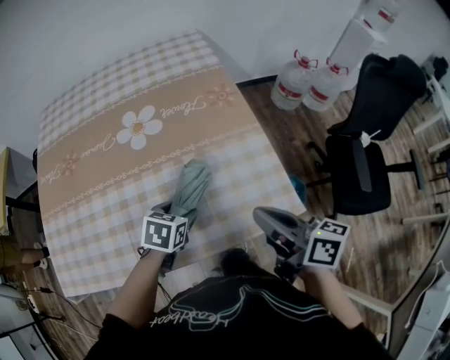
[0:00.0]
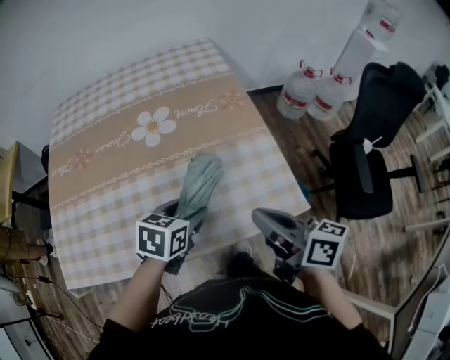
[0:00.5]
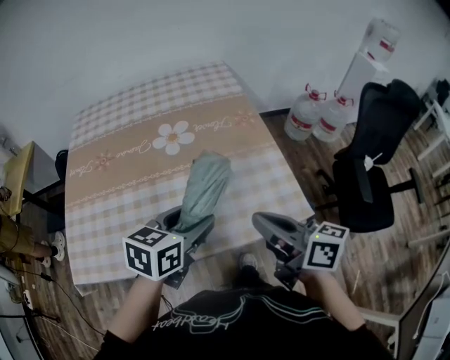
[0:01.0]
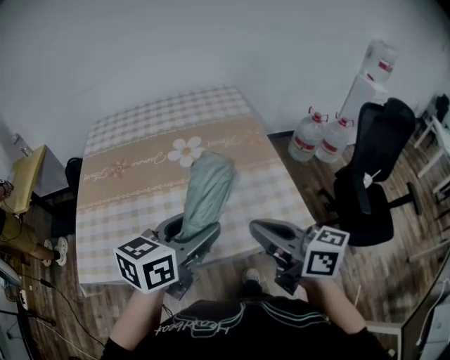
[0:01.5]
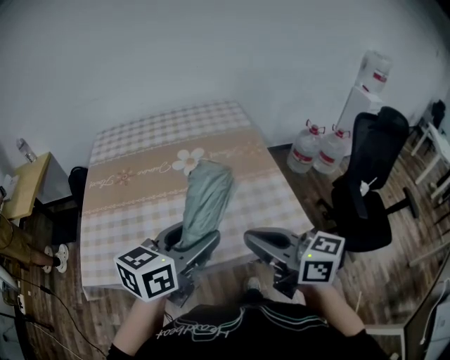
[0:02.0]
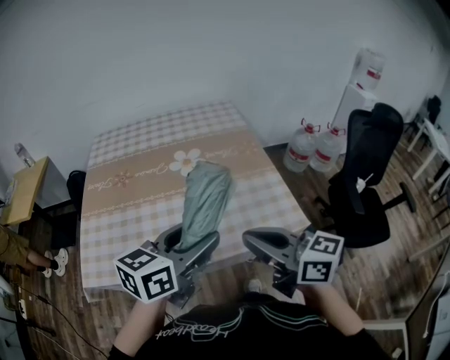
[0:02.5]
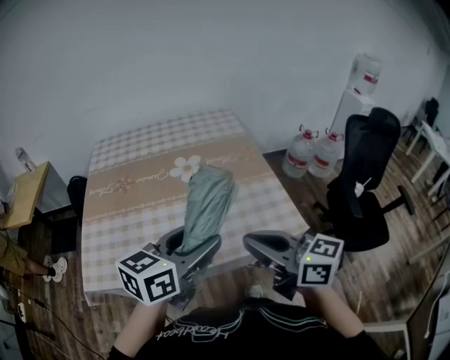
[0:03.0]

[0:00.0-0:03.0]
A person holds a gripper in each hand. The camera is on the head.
0:00.0 to 0:01.5: The right gripper shifts roughly 20 cm upward, to the left and backward, and turns by approximately 20 degrees, while the left gripper goes roughly 30 cm upward and backward, and tilts its fingers about 40 degrees upward.
0:01.5 to 0:03.0: Both grippers travel together backward, approximately 5 cm.

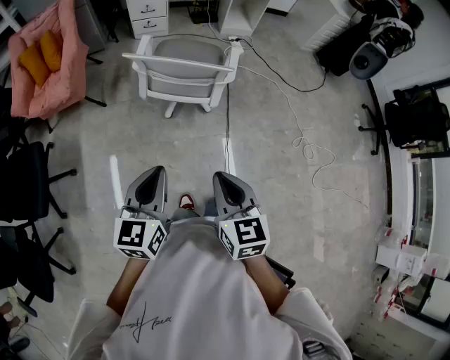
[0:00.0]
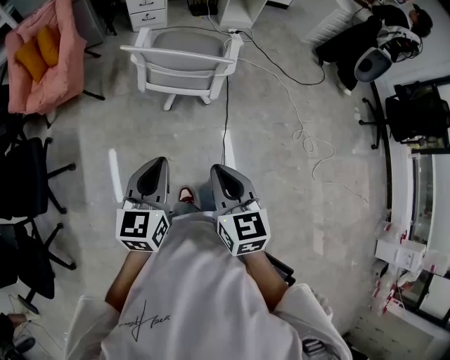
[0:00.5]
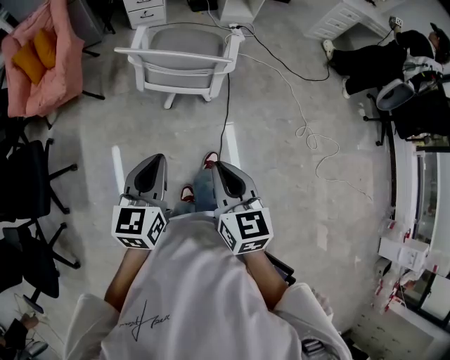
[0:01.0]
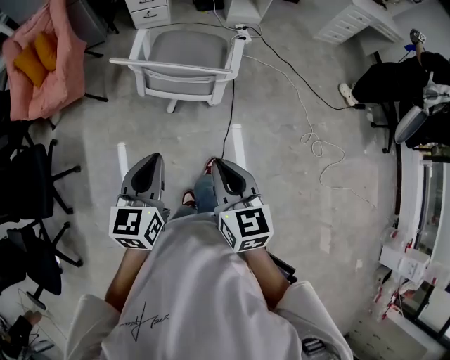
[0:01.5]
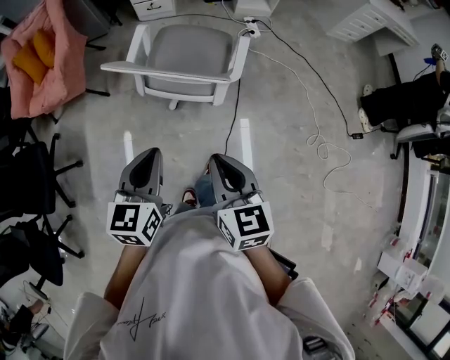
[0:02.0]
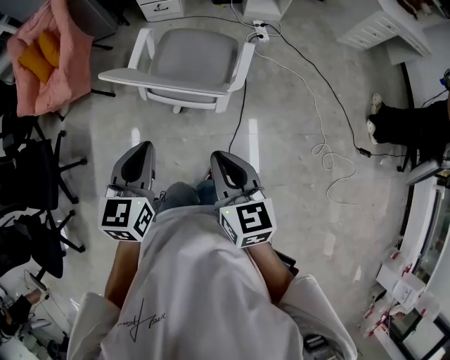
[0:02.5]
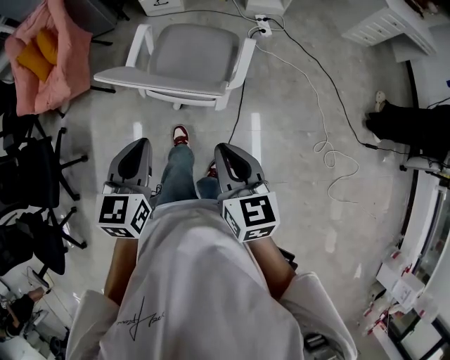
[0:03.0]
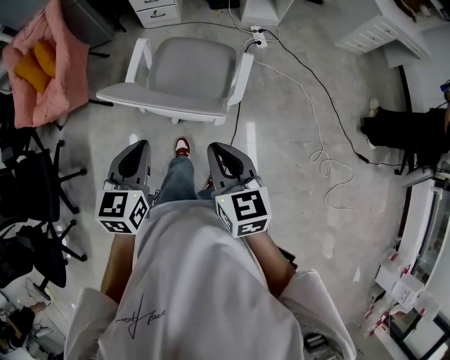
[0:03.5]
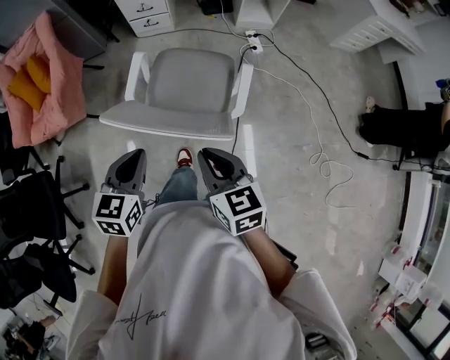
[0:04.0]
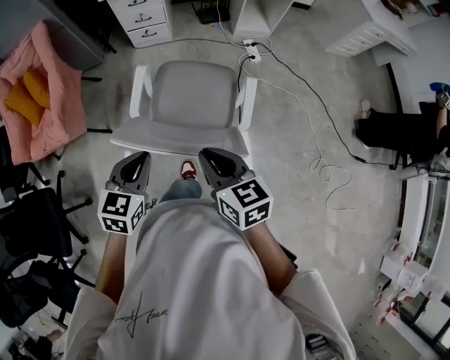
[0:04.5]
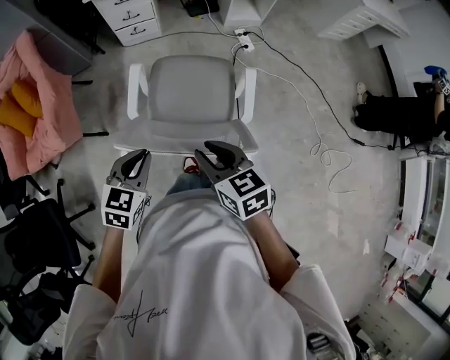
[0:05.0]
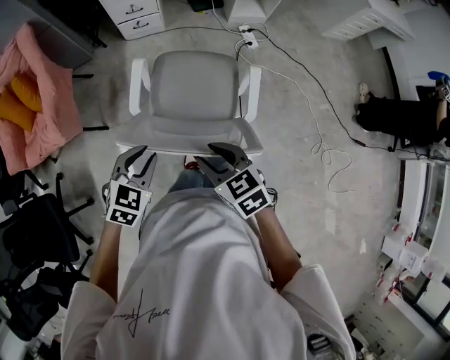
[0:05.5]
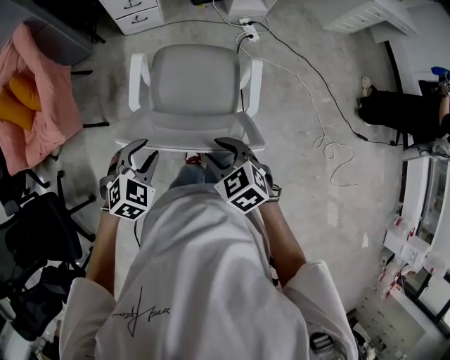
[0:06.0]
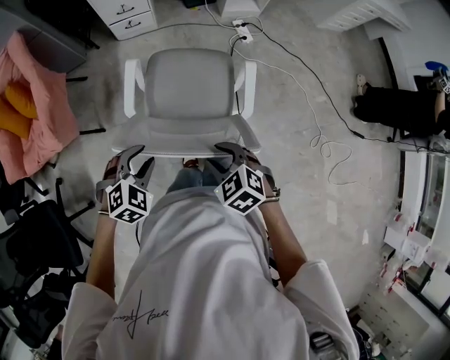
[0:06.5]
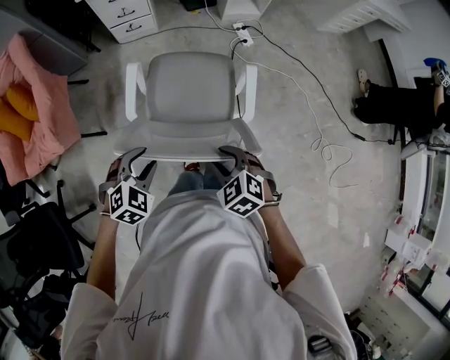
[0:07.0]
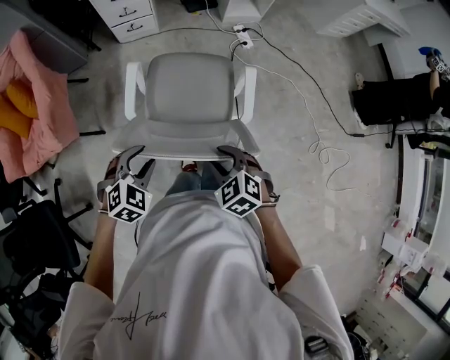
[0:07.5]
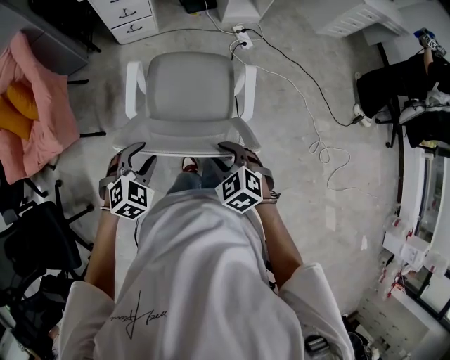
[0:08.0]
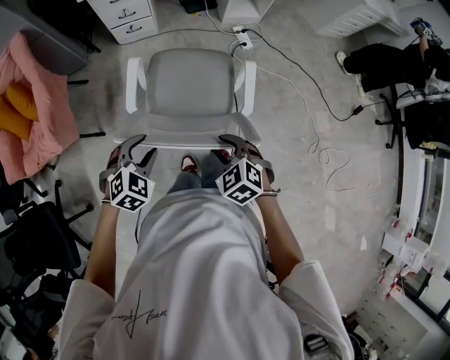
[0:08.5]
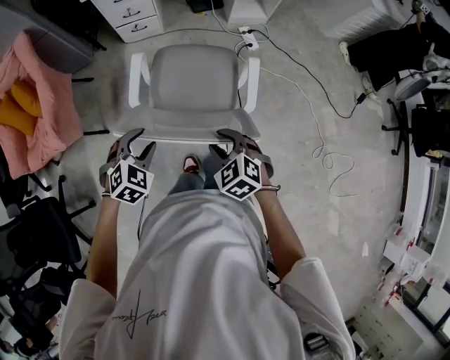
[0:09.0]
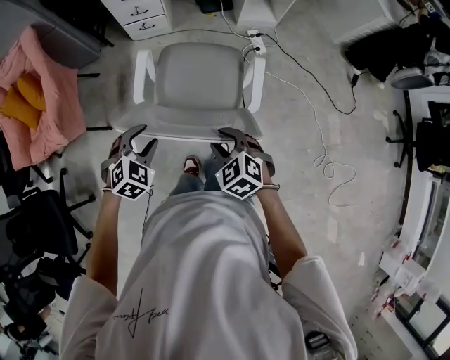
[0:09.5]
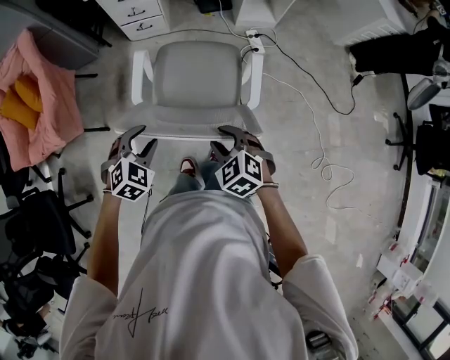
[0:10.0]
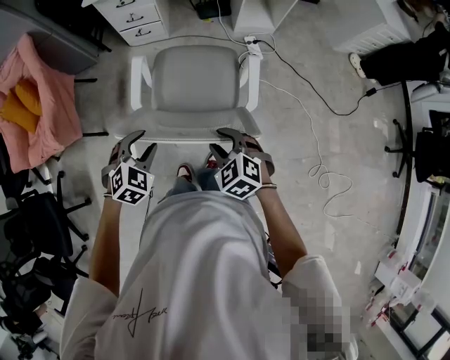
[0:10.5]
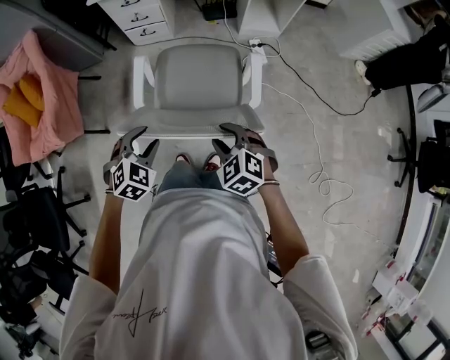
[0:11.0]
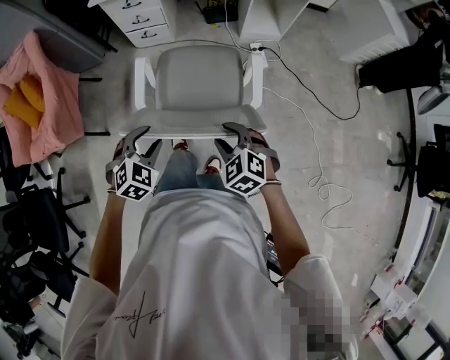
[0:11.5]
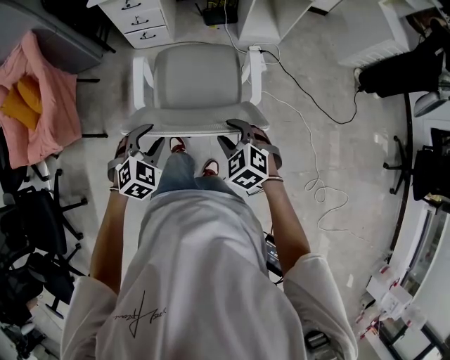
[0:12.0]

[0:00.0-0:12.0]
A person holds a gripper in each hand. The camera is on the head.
0:00.0 to 0:02.0: The grippers both shift forward by approximately 15 cm.
0:02.0 to 0:04.0: Both grippers move forward, some 20 cm.
0:04.0 to 0:06.0: The left gripper goes about 15 cm downward, forward and to the left, changes its angle by some 50 degrees, and opens up. The right gripper goes some 15 cm downward, to the left and forward, swivels roughly 30 degrees, and opens up.
0:06.0 to 0:08.0: There are only small adjustments of the grippers.
0:08.0 to 0:10.0: The two grippers go roughly 10 cm forward and to the right.
0:10.0 to 0:12.0: The right gripper shifts roughly 10 cm forward and to the right. The left gripper shifts some 10 cm to the right and forward.

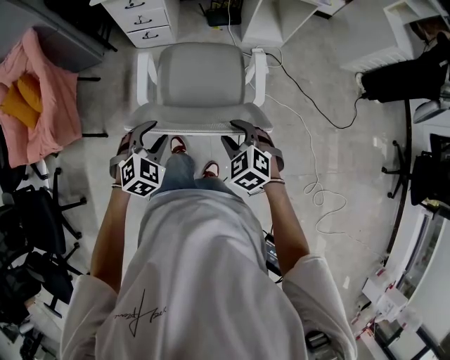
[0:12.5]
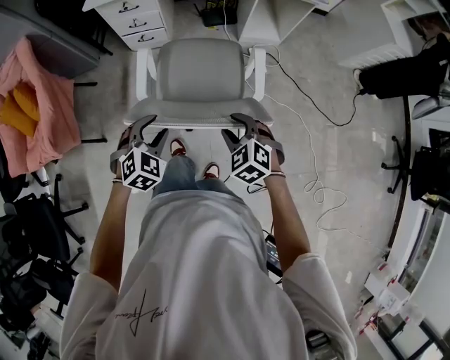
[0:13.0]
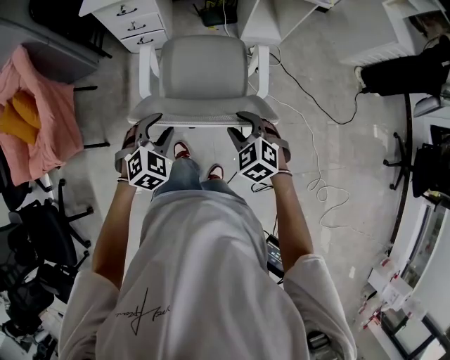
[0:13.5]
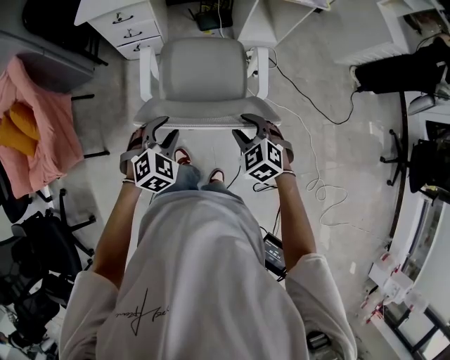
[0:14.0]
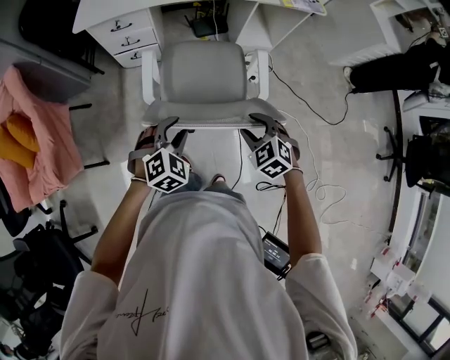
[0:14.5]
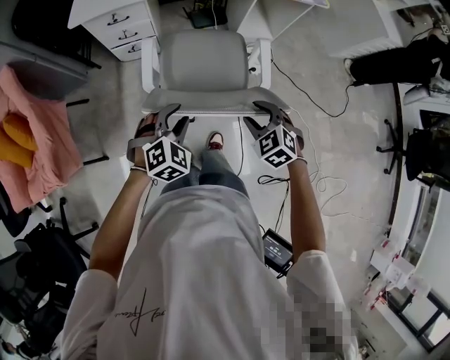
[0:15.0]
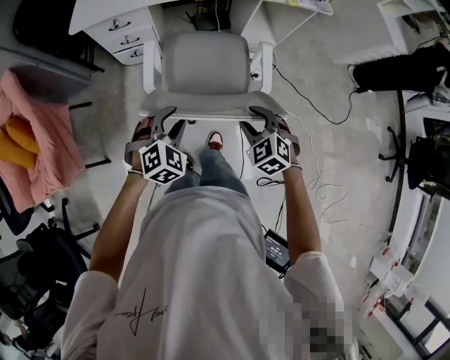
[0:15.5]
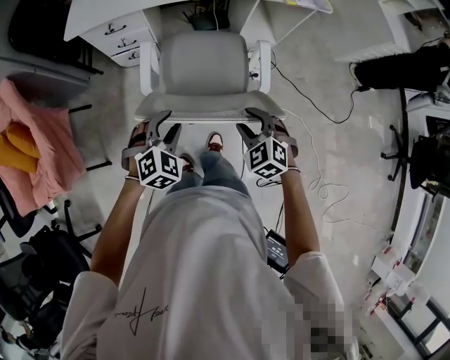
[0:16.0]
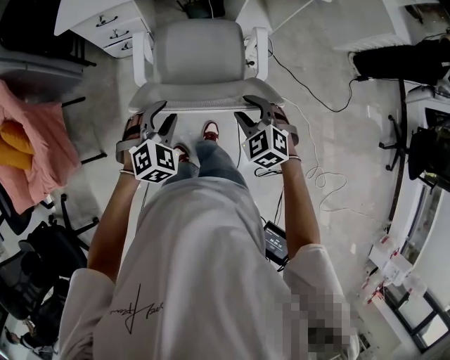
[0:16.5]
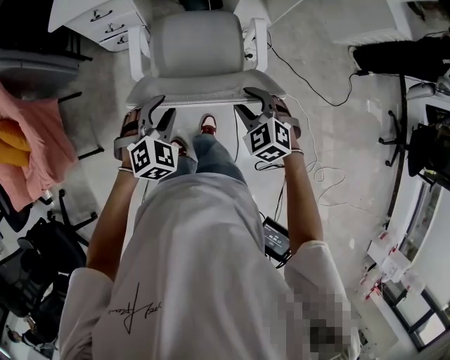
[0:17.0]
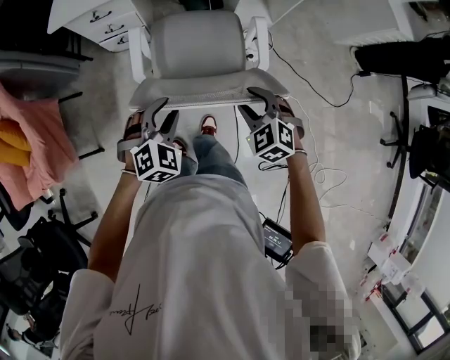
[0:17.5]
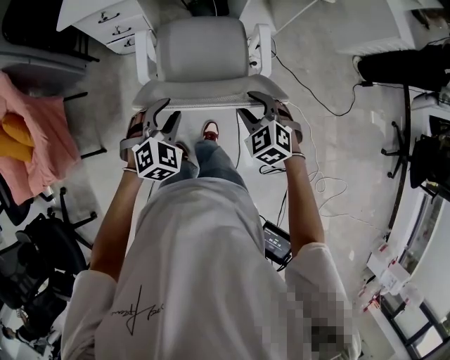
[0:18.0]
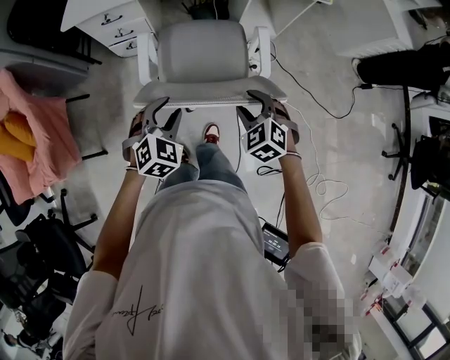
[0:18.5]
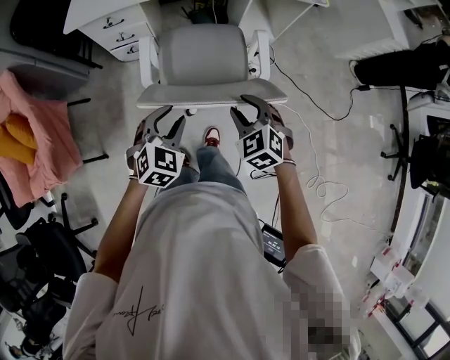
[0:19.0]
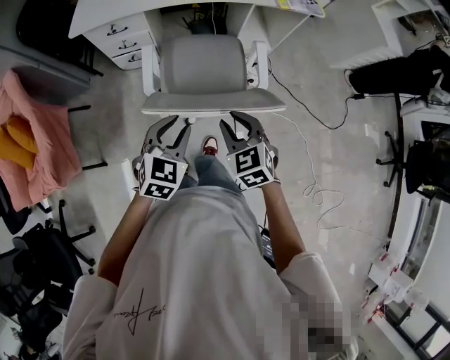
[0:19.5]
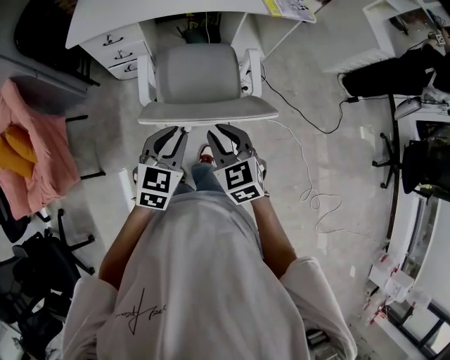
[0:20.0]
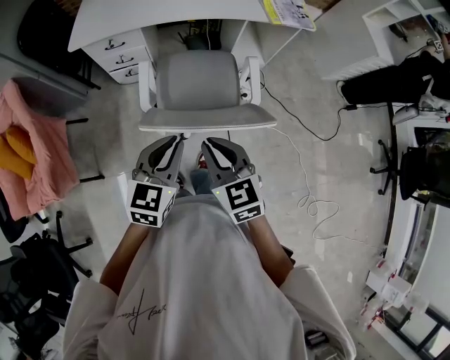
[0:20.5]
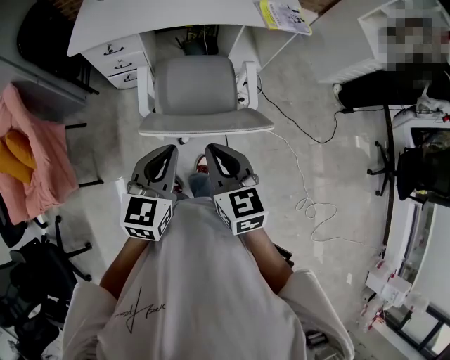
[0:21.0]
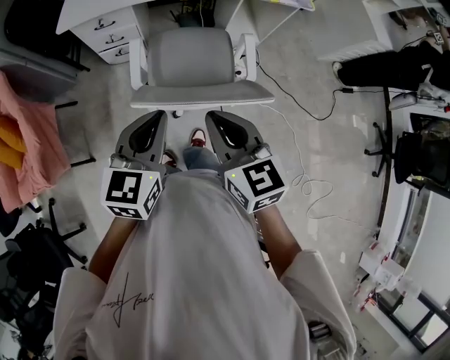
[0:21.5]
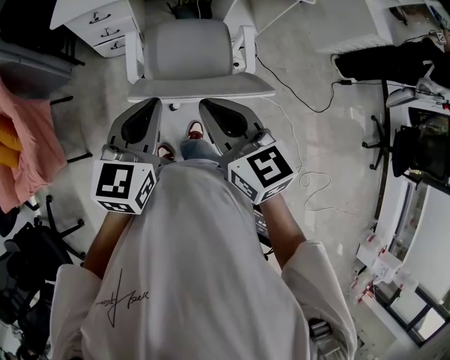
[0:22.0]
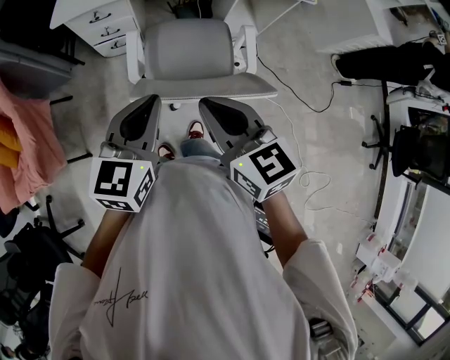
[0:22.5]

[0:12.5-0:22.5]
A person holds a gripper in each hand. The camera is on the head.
0:12.5 to 0:14.5: The two grippers go approximately 15 cm forward.
0:14.5 to 0:16.5: The grippers both shift forward by approximately 5 cm.
0:16.5 to 0:18.5: The grippers stay close to where they were, moving slightly.
0:18.5 to 0:20.5: The right gripper goes roughly 20 cm upward and to the left, rotates about 40 degrees, and closes its fingers. Meanwhile the left gripper heads upward, covering some 10 cm, changes its angle by roughly 40 degrees, and closes its fingers.
0:20.5 to 0:22.5: Both grippers move upward, about 5 cm.

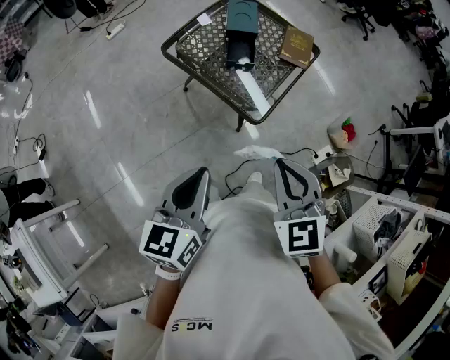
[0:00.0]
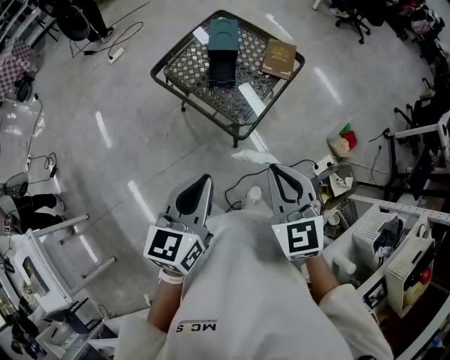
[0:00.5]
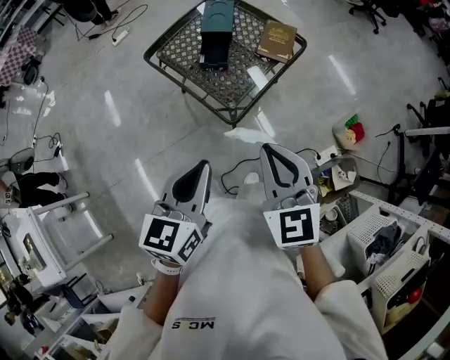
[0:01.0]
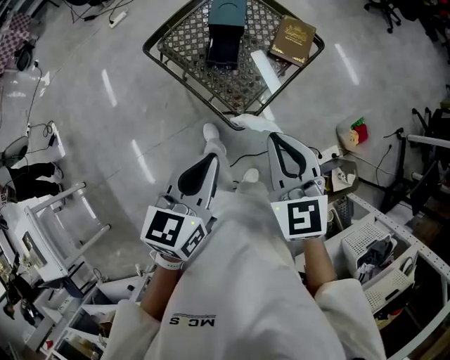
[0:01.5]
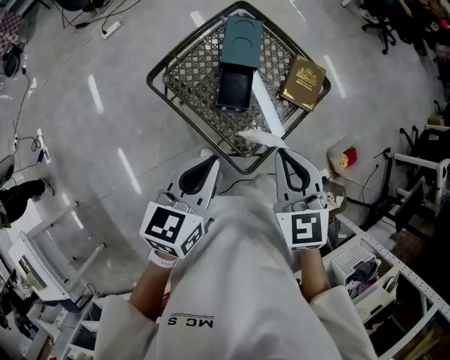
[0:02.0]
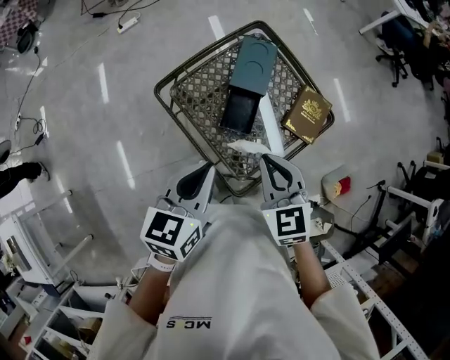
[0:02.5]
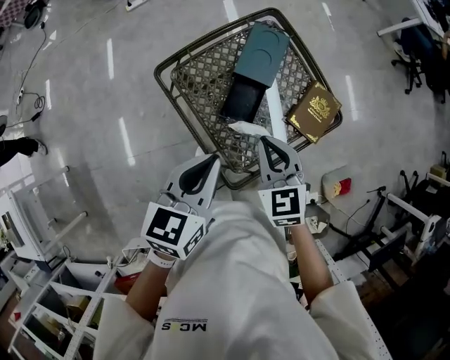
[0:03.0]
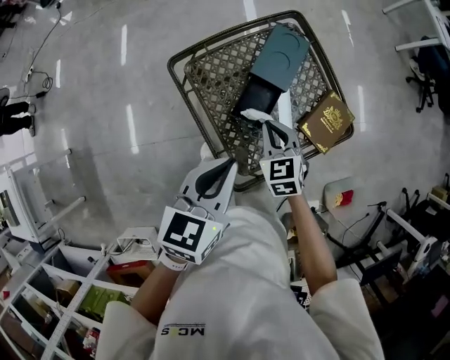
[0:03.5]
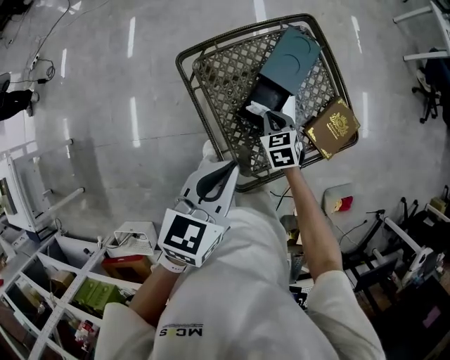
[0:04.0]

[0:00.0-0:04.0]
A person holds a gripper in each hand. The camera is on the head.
0:00.0 to 0:02.0: Both grippers travel together forward, some 25 cm.
0:02.0 to 0:04.0: The left gripper heads forward, covering approximately 5 cm. Meanwhile the right gripper is displaced downward and forward by some 35 cm, and swivels roughly 30 degrees.
